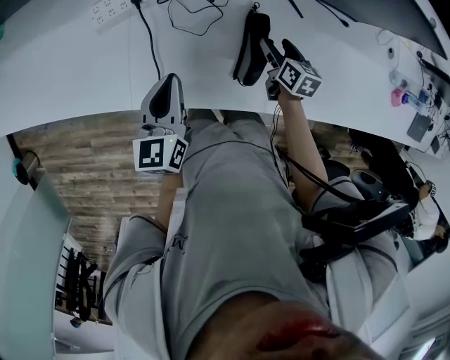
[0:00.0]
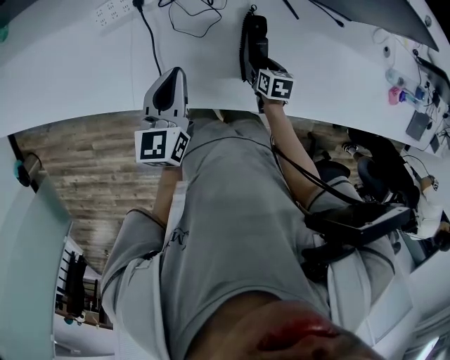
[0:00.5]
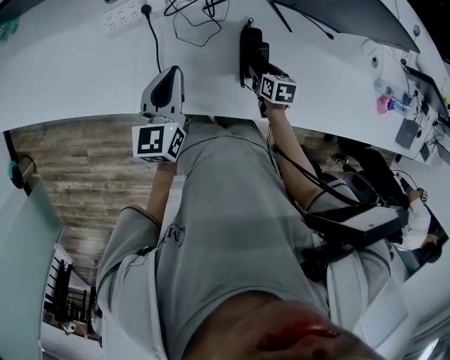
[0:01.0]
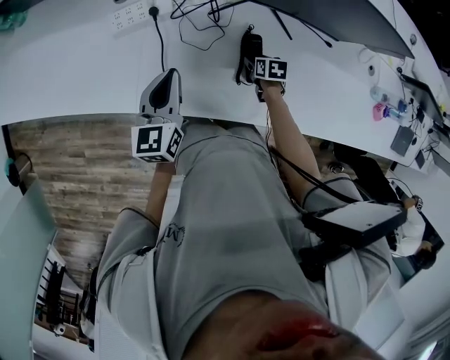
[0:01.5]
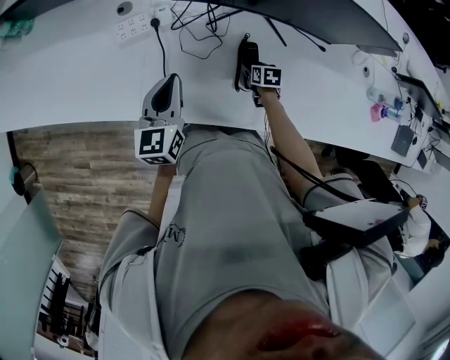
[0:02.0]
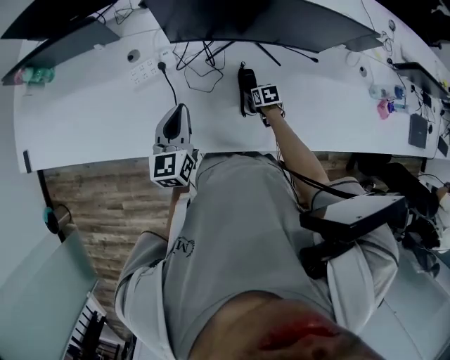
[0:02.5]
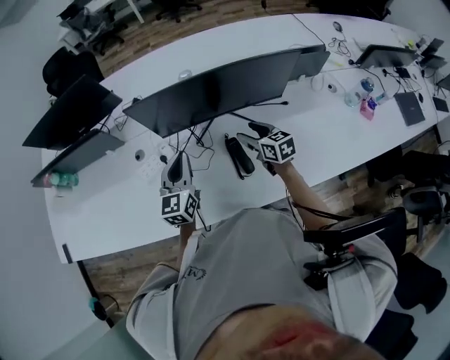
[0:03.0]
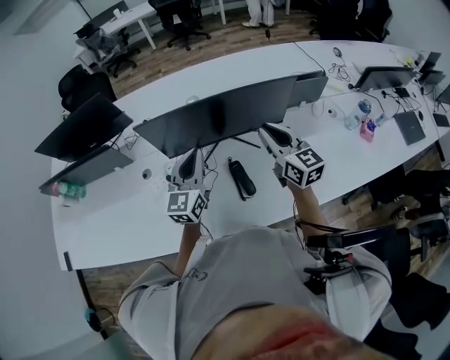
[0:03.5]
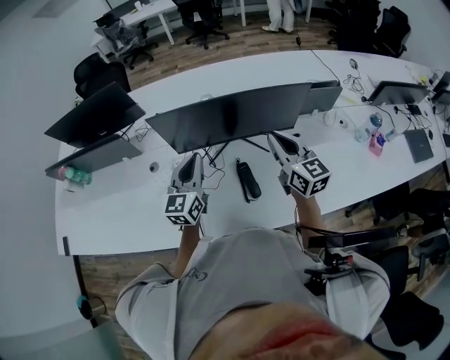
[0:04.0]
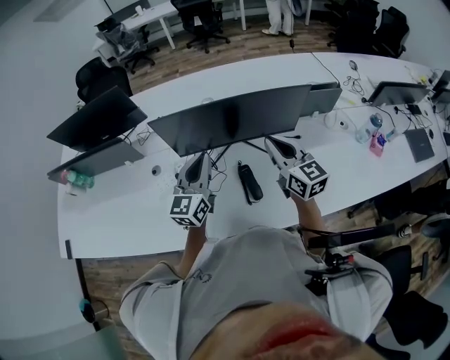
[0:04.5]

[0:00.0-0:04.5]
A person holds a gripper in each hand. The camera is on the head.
0:00.0 to 0:02.0: The right gripper travels downward by about 5 cm, travels backward and back again, approximately 10 cm each way, and rotates approximately 20 degrees; the left gripper moves upward, roughly 5 cm.
0:02.0 to 0:04.5: The left gripper travels upward and to the right by some 25 cm, and swivels some 30 degrees. The right gripper goes about 50 cm upward, tilts its fingers approximately 60 degrees upward, and closes up.

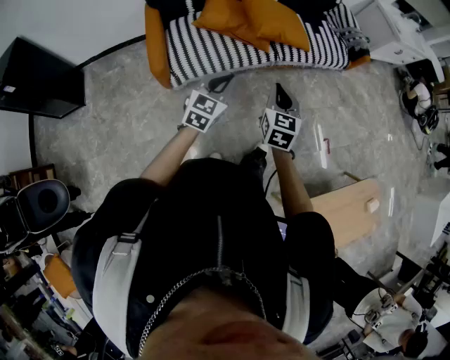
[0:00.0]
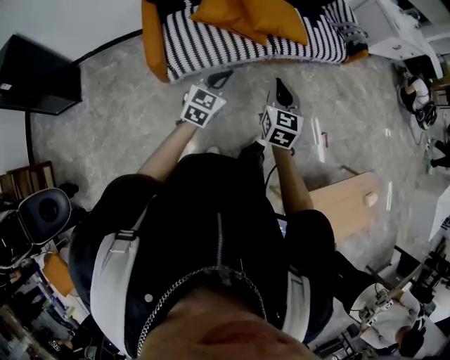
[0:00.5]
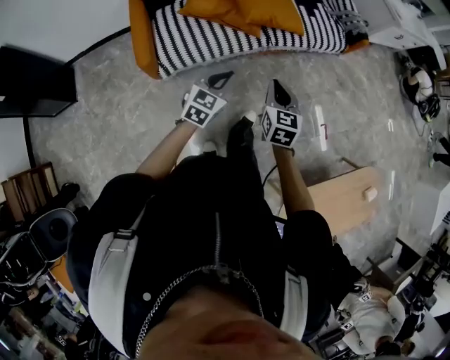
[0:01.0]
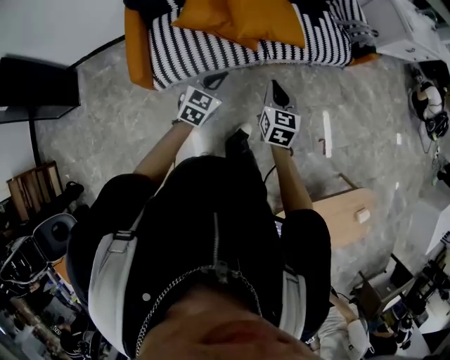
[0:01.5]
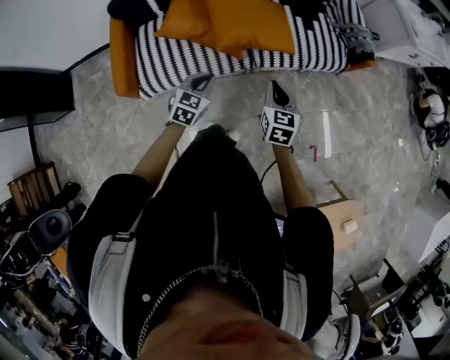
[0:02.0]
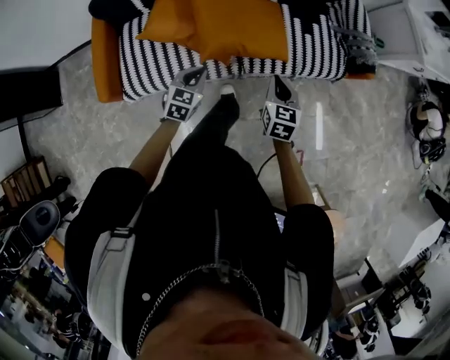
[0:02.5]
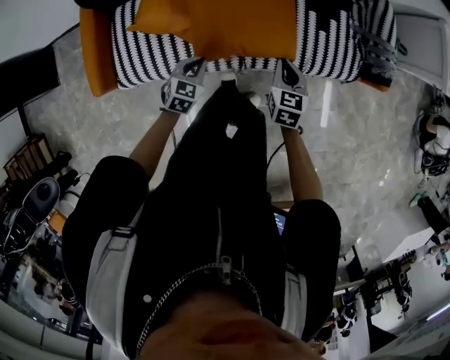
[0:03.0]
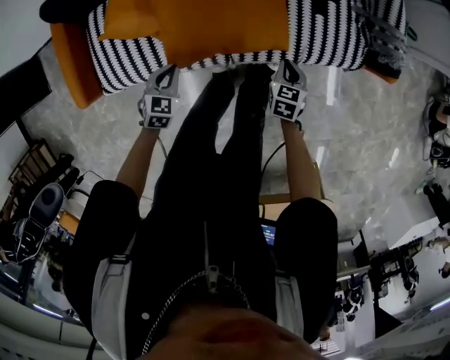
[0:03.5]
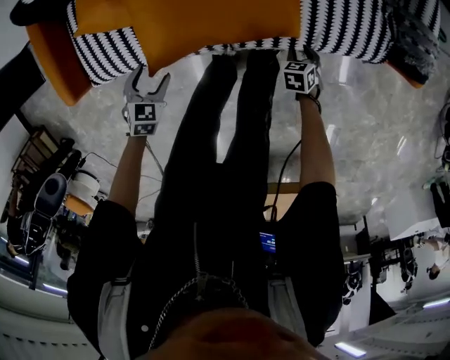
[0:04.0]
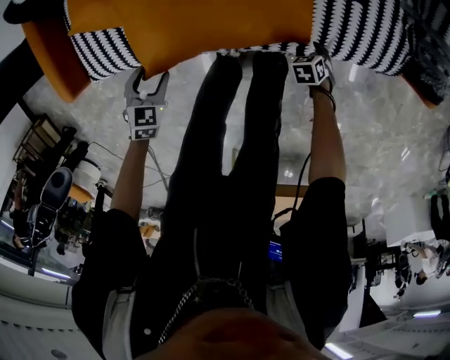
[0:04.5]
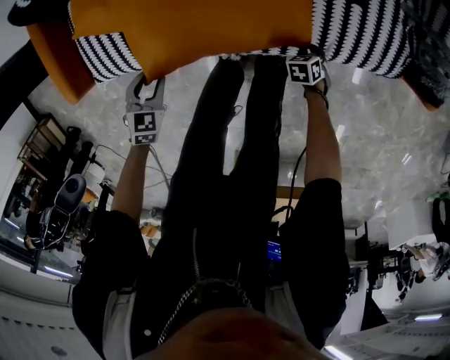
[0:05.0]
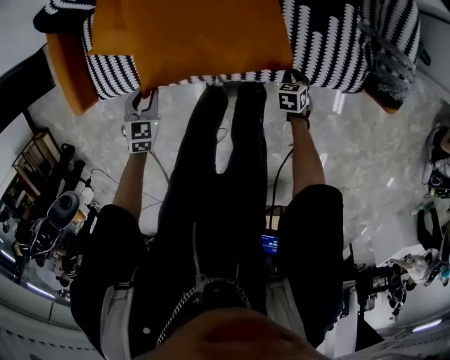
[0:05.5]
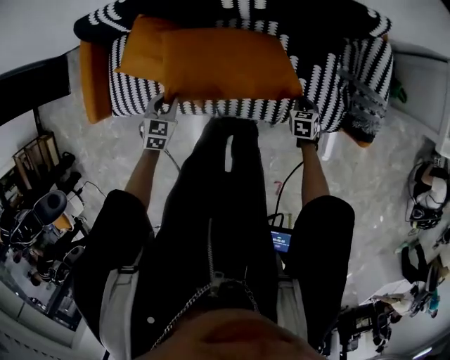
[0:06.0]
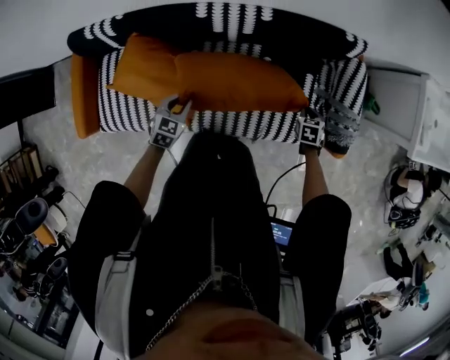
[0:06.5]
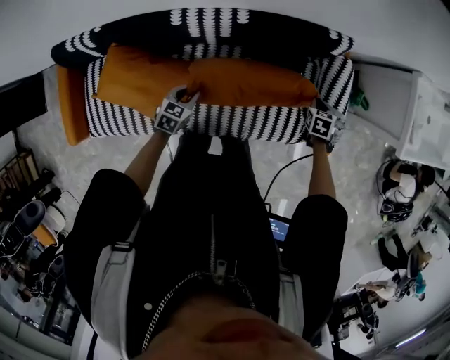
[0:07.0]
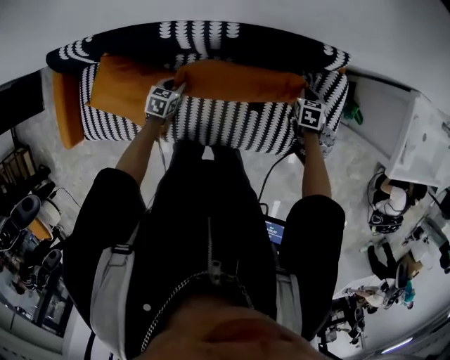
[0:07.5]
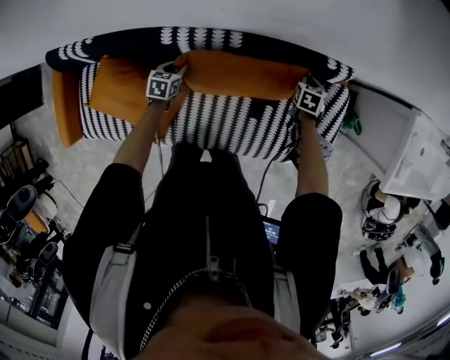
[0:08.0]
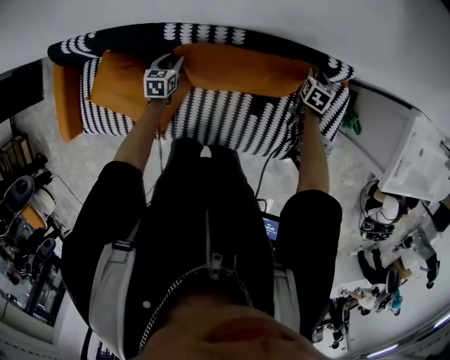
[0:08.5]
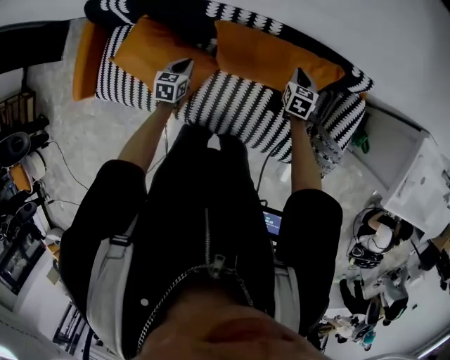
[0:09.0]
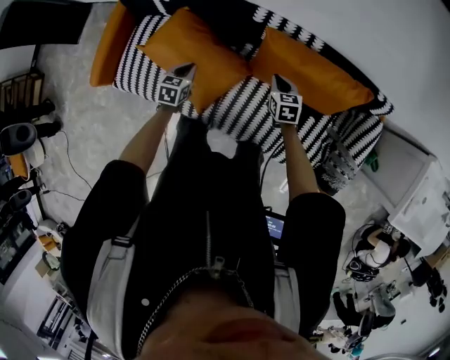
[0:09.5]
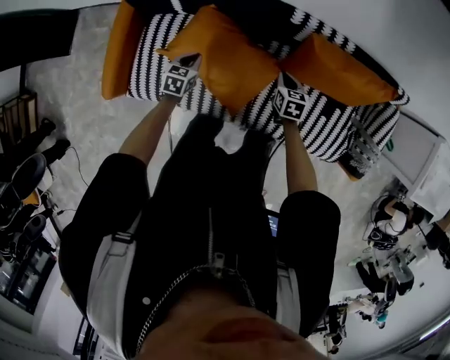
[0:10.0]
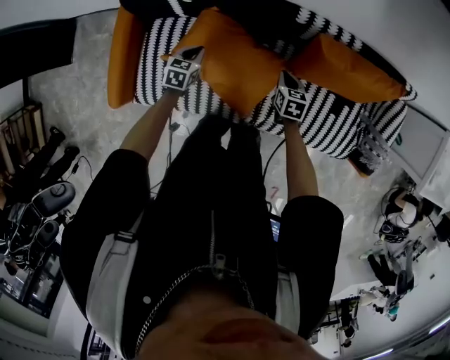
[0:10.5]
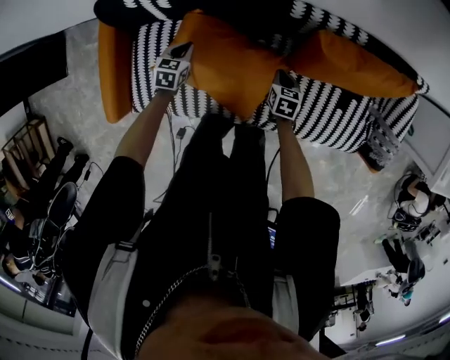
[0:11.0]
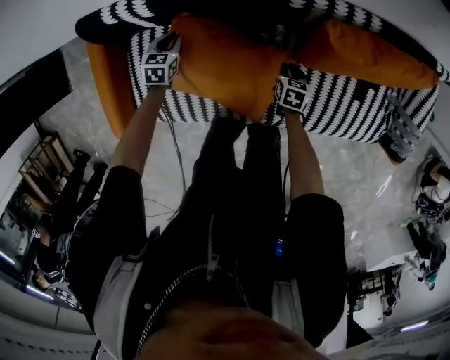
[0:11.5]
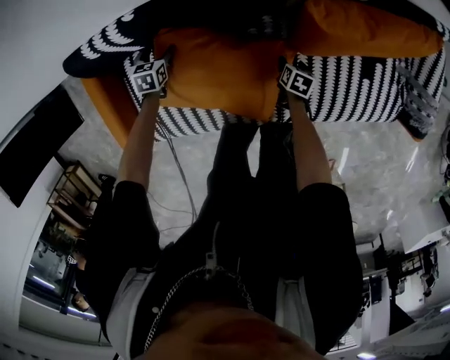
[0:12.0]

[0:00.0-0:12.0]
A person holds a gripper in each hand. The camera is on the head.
0:00.0 to 0:02.0: The left gripper heads forward, covering about 30 cm, while the right gripper is displaced forward and to the right by about 35 cm.
0:02.0 to 0:04.0: The left gripper heads downward and forward, covering some 35 cm, swivels some 30 degrees, and opens. The right gripper travels downward and forward by some 50 cm, points its fingers approximately 40 degrees further downward, and opens its fingers.
0:04.0 to 0:06.0: The left gripper ends up some 25 cm from where it was, and closes its fingers, while the right gripper moves some 25 cm, and closes its fingers.
0:06.0 to 0:08.0: The left gripper moves roughly 40 cm, and turns by approximately 30 degrees. The right gripper moves some 40 cm.
0:08.0 to 0:10.0: Both grippers are carried roughly 50 cm. The right gripper swivels roughly 20 degrees, and opens, then closes again.
0:10.0 to 0:12.0: The right gripper shifts about 25 cm downward, rotates about 40 degrees, and opens; the left gripper is displaced forward, downward and to the left by about 30 cm, and opens.

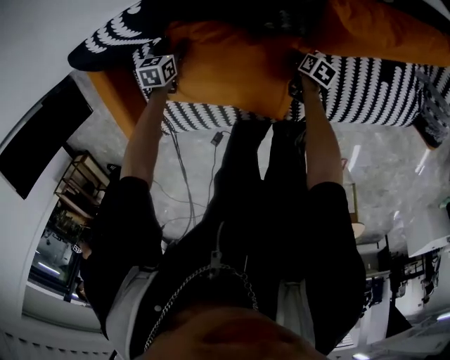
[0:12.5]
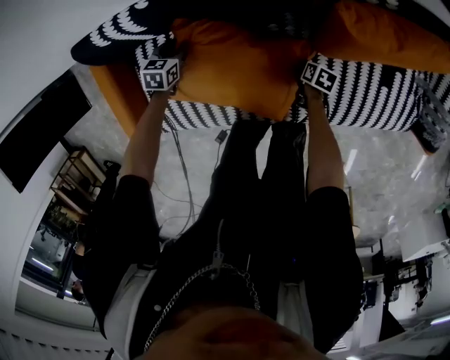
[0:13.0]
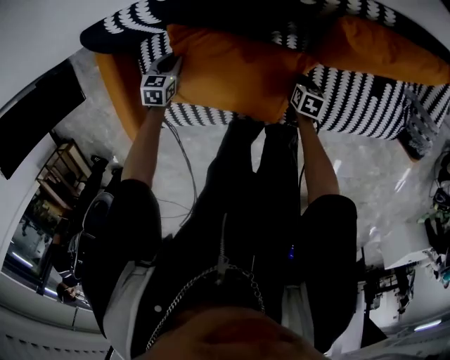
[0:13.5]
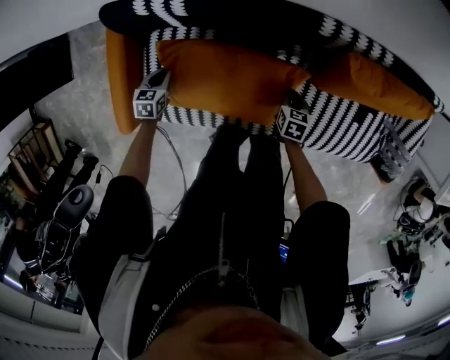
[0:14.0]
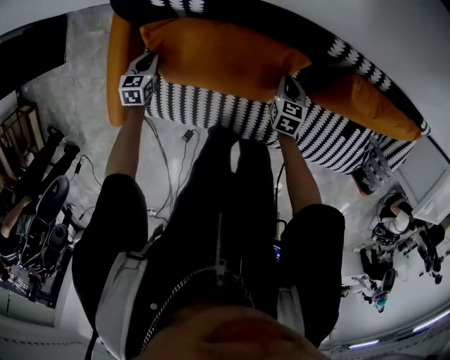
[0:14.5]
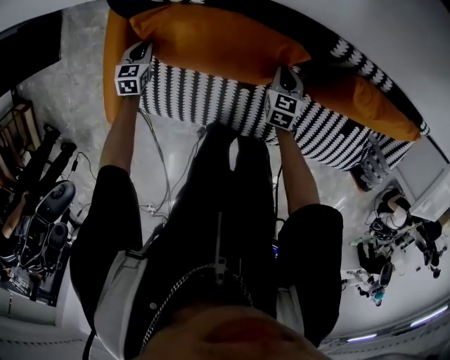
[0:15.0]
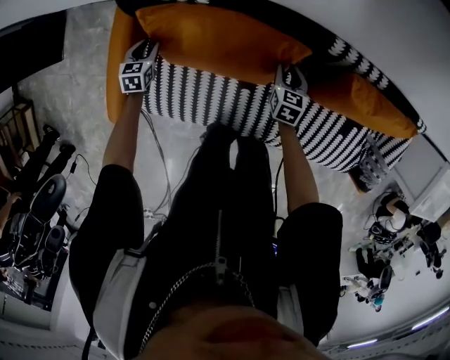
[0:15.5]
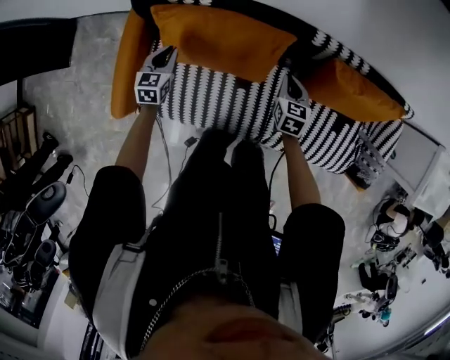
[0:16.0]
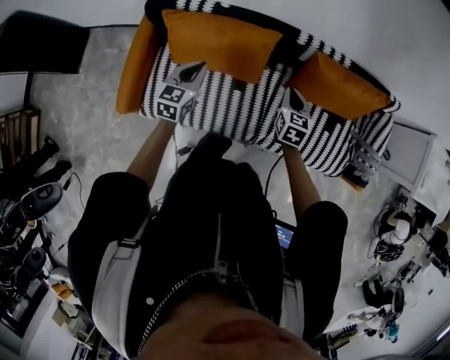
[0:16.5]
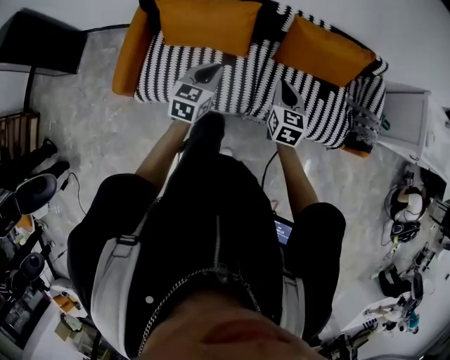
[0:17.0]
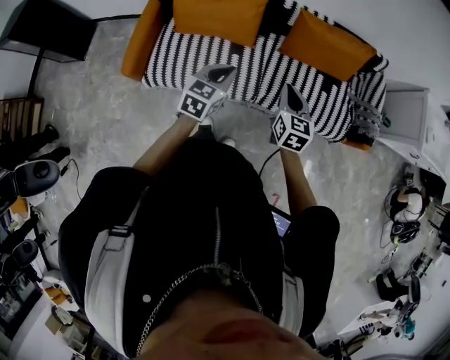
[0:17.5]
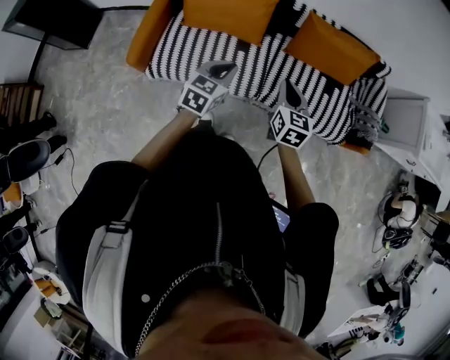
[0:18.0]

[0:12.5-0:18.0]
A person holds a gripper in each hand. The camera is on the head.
0:12.5 to 0:14.5: The right gripper travels upward, to the left and forward by some 30 cm, rolls counterclockwise, seen from behind, by roughly 50 degrees, and closes up. The left gripper is displaced to the left and upward by approximately 25 cm, rotates approximately 20 degrees, and closes up.
0:14.5 to 0:16.0: The left gripper shifts roughly 15 cm upward and to the right, while the right gripper shifts about 15 cm upward and backward, and opens, then closes again.
0:16.0 to 0:18.0: The two grippers travel together, backward and to the right, about 50 cm. The grippers both shift upward by roughly 20 cm.

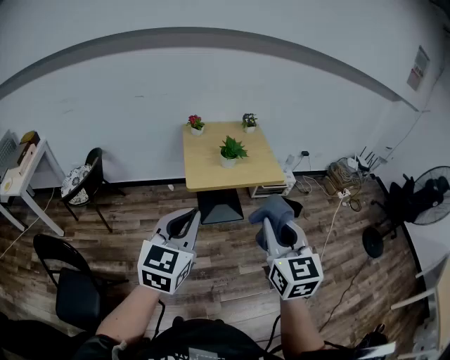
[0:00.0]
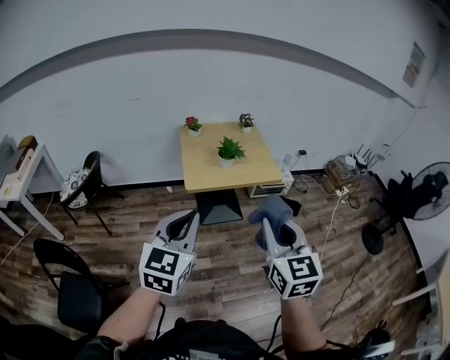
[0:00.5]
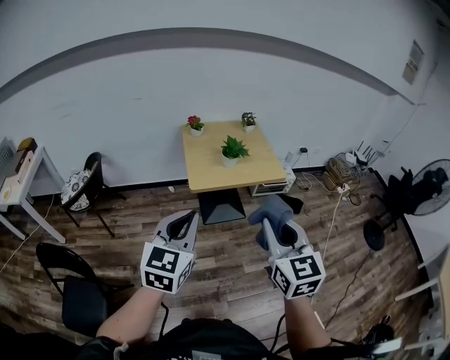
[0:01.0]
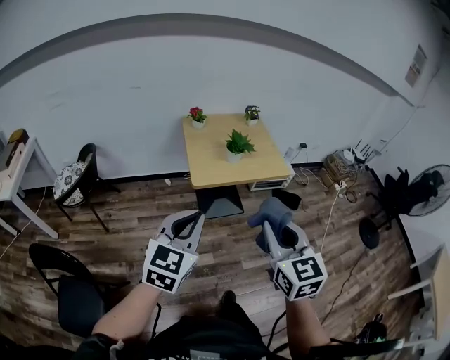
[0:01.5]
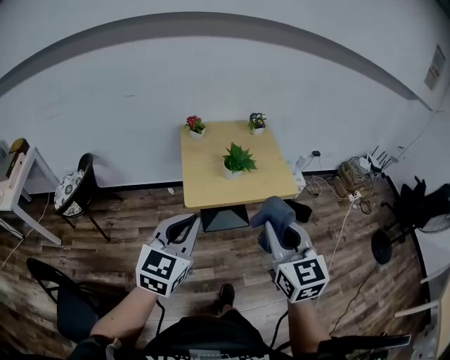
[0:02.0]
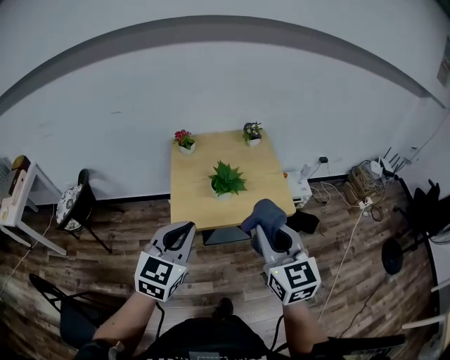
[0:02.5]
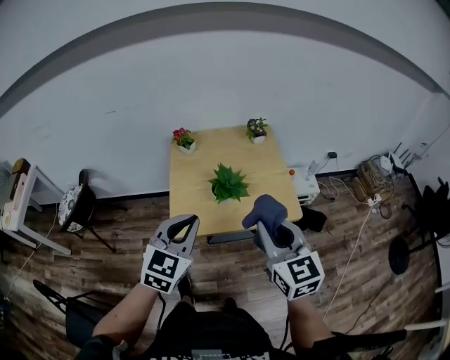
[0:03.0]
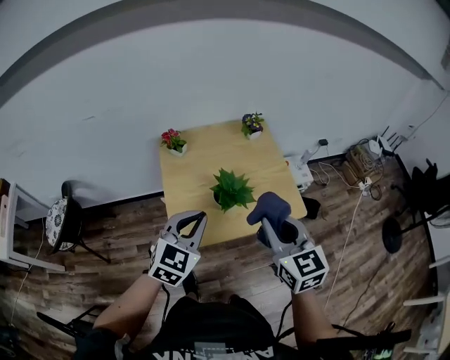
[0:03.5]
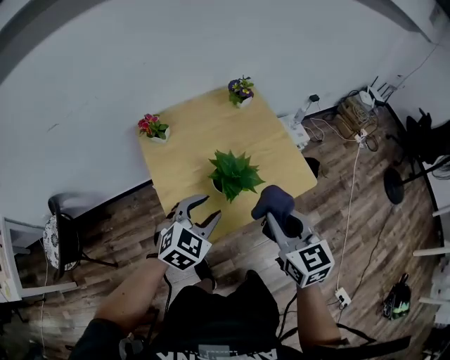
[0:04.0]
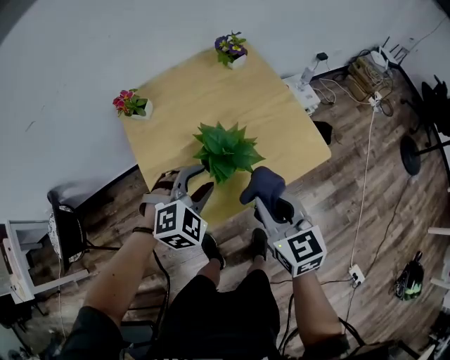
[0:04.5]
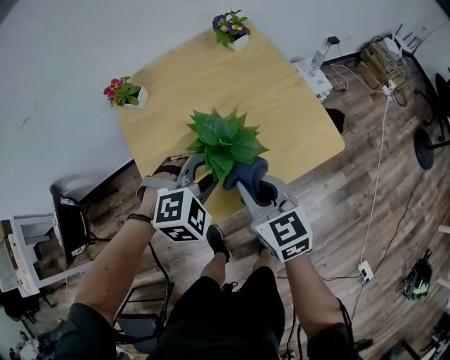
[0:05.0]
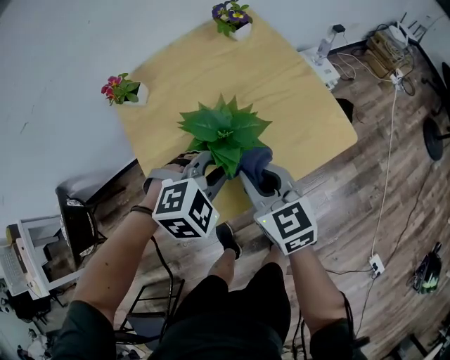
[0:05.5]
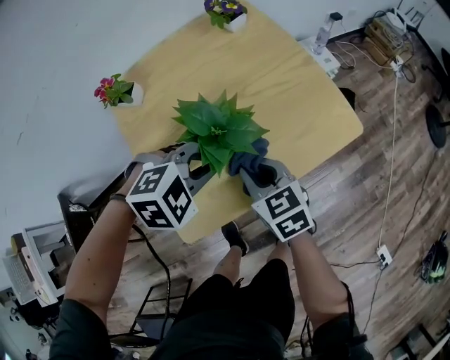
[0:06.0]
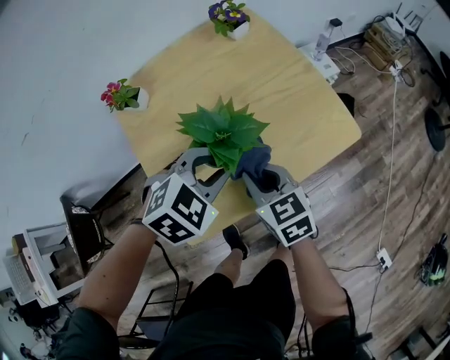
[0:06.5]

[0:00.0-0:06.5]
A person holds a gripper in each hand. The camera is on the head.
0:00.0 to 0:02.0: Both grippers move forward, about 15 cm.
0:02.0 to 0:04.5: The grippers both shift forward and downward by about 40 cm. The right gripper rotates approximately 20 degrees. Meanwhile the left gripper tilts its fingers some 40 degrees downward, and opens up.
0:04.5 to 0:06.5: The right gripper goes about 15 cm downward, to the left and forward.
